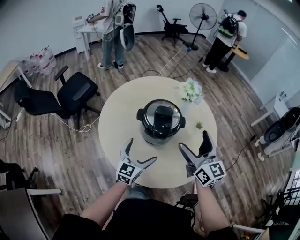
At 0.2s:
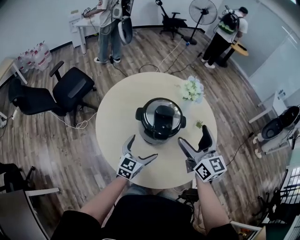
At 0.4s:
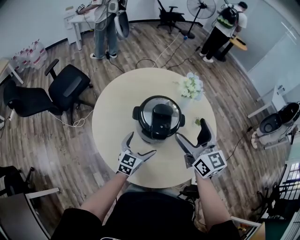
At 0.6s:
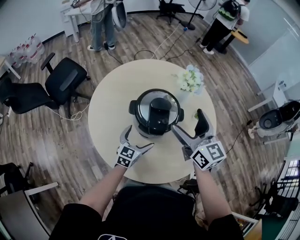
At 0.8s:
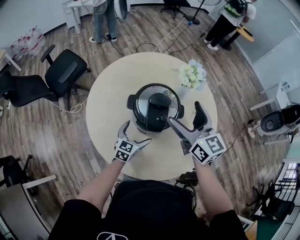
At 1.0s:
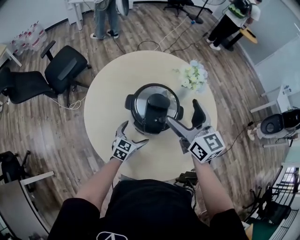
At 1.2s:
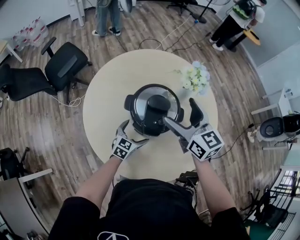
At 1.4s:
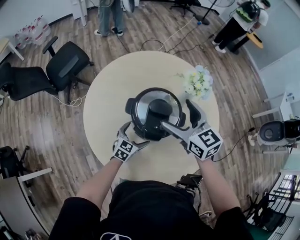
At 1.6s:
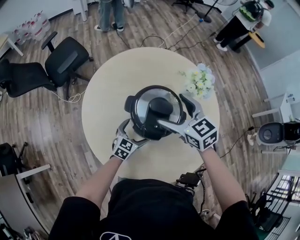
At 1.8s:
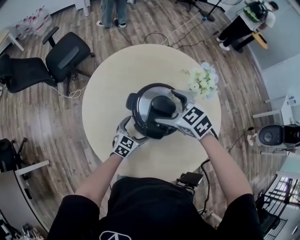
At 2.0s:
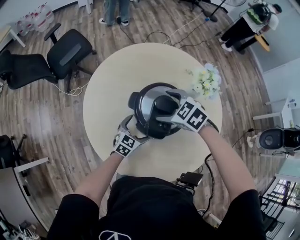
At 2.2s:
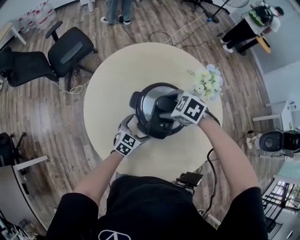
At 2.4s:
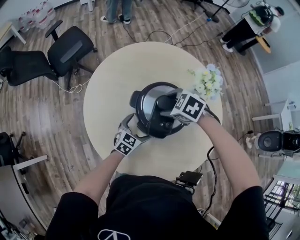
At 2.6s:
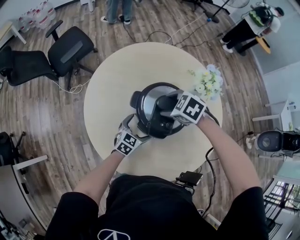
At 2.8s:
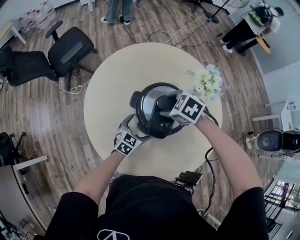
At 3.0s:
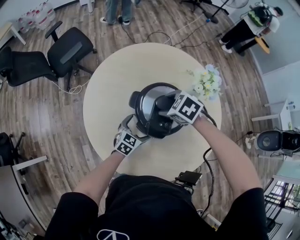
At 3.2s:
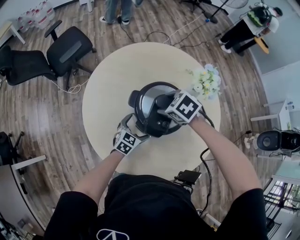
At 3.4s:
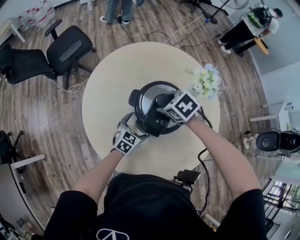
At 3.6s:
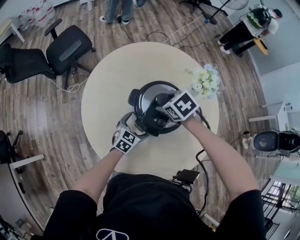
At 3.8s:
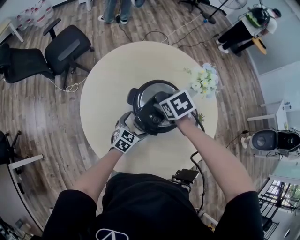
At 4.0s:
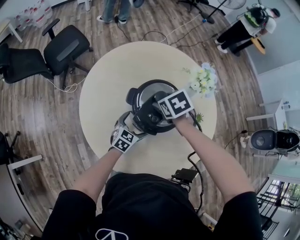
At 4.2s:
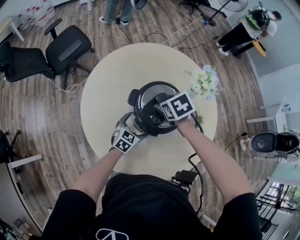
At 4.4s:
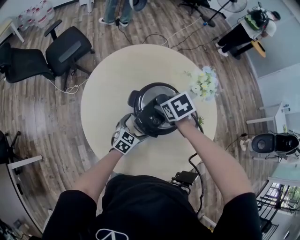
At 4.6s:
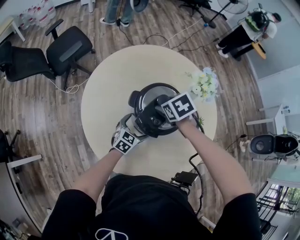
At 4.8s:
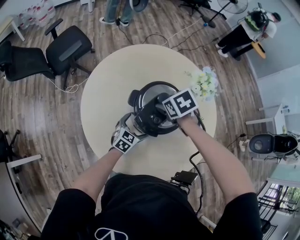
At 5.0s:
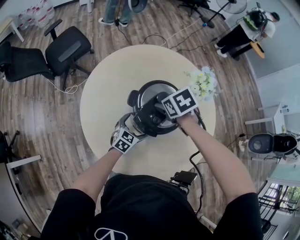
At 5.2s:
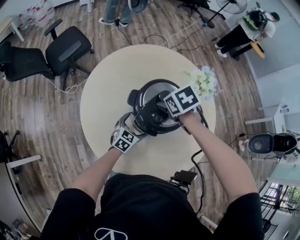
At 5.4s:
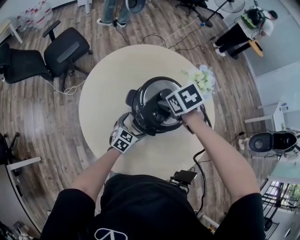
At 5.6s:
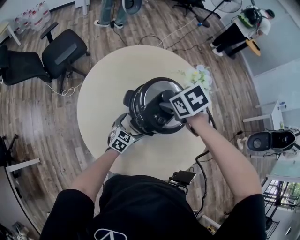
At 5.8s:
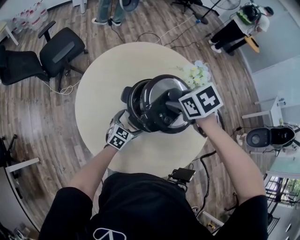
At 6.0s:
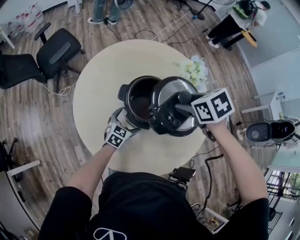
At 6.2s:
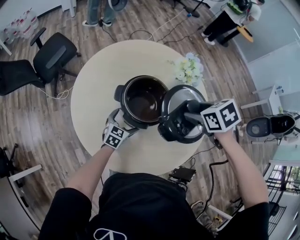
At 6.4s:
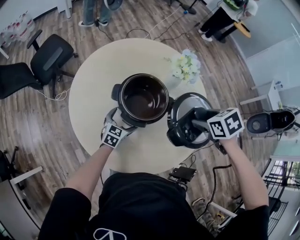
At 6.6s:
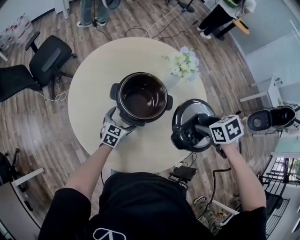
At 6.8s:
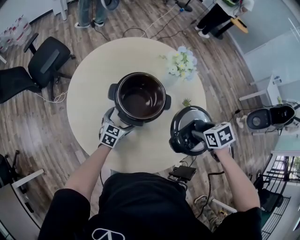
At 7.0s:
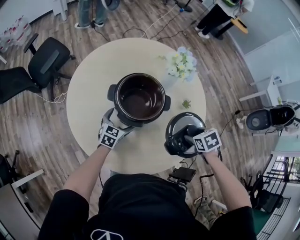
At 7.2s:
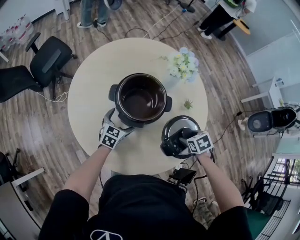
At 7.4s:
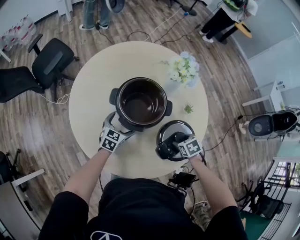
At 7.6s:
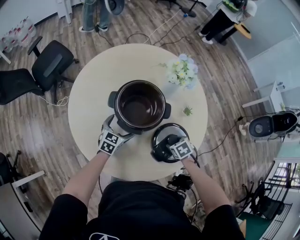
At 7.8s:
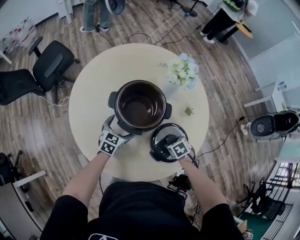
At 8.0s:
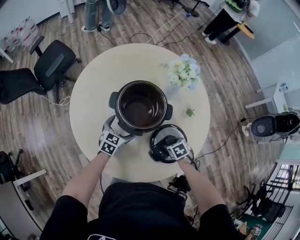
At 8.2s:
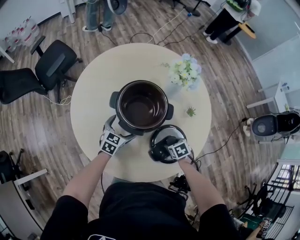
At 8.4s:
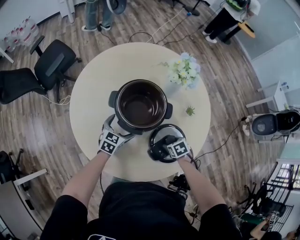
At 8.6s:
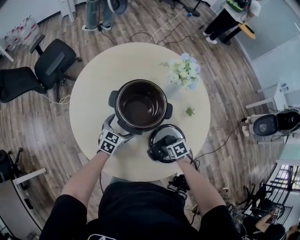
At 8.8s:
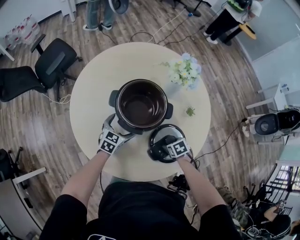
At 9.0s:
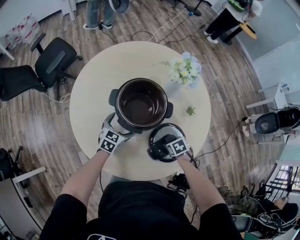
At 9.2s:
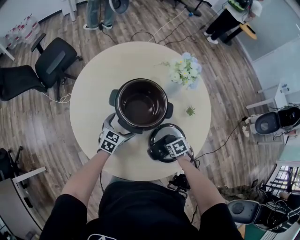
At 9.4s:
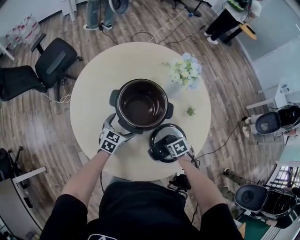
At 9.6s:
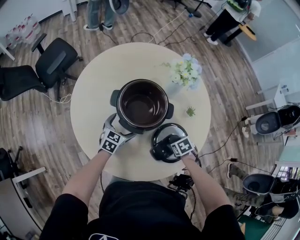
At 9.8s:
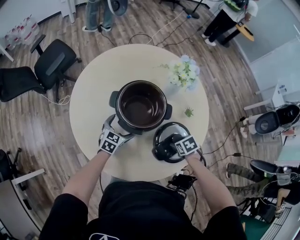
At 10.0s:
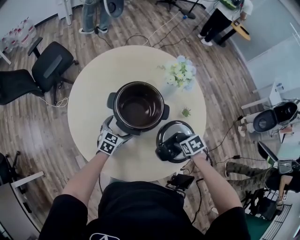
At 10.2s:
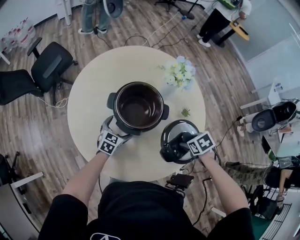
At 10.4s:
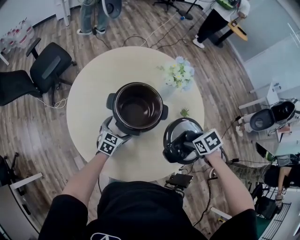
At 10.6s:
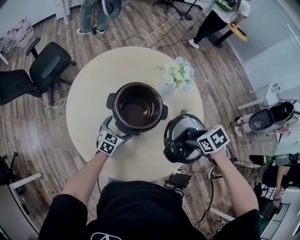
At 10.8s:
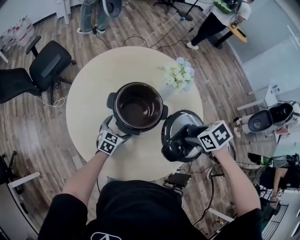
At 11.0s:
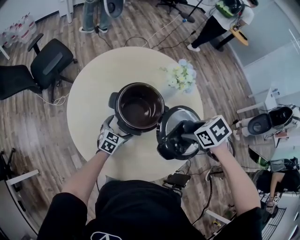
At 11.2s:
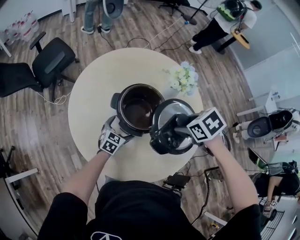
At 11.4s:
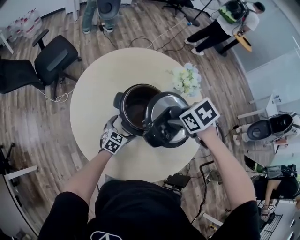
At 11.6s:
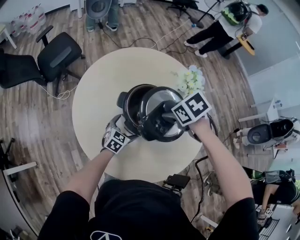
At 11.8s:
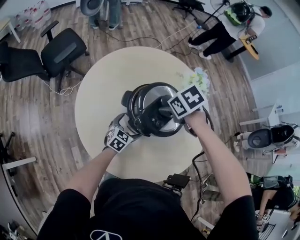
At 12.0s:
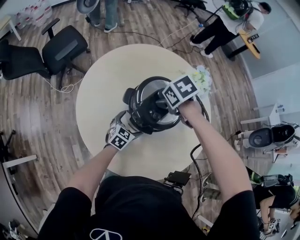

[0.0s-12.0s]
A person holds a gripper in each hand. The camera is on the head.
0.0s to 1.6s: The left gripper heads downward and forward, covering approximately 25 cm, and changes its angle by roughly 20 degrees. Meanwhile the right gripper is displaced forward, downward and to the left by some 25 cm, and tips its fingers downward by roughly 30 degrees.
1.6s to 3.0s: The right gripper travels downward by about 10 cm, tips its fingers downward by roughly 40 degrees, and closes its fingers.
3.0s to 4.4s: The right gripper swivels some 30 degrees.
4.4s to 6.0s: The right gripper moves upward and to the right, about 15 cm.
6.0s to 7.6s: The right gripper goes roughly 25 cm downward.
7.6s to 9.0s: There are only small adjustments of the grippers.
9.0s to 10.4s: The right gripper shifts some 20 cm upward.
10.4s to 12.0s: The right gripper shifts by about 30 cm.

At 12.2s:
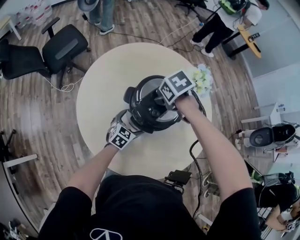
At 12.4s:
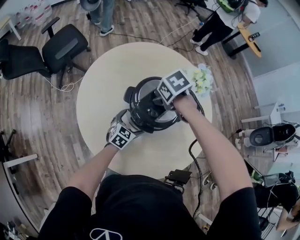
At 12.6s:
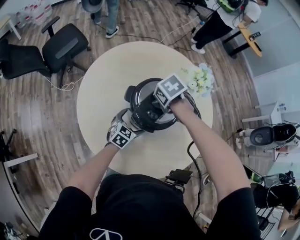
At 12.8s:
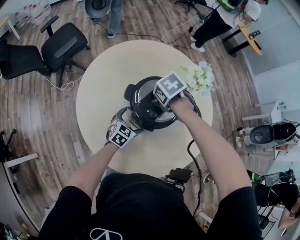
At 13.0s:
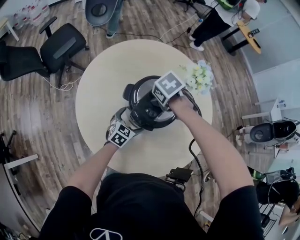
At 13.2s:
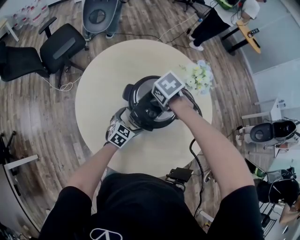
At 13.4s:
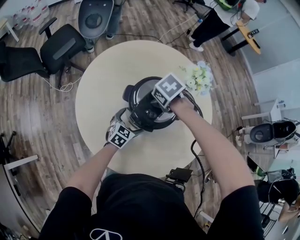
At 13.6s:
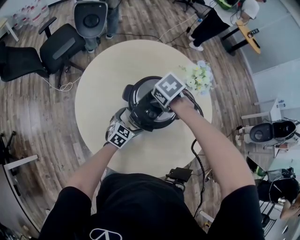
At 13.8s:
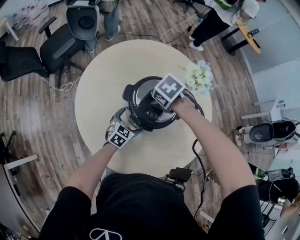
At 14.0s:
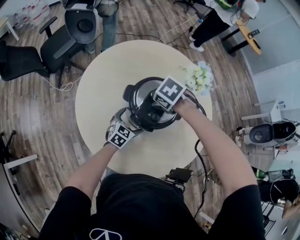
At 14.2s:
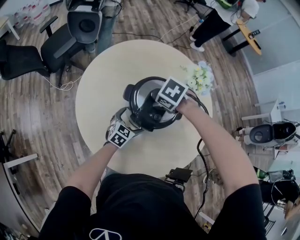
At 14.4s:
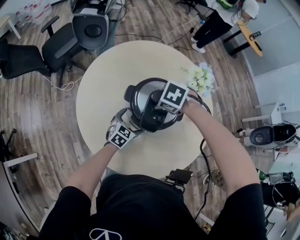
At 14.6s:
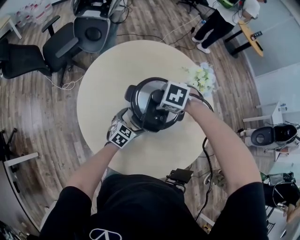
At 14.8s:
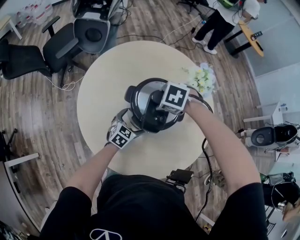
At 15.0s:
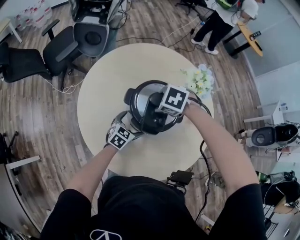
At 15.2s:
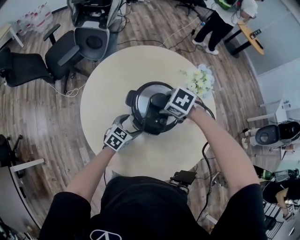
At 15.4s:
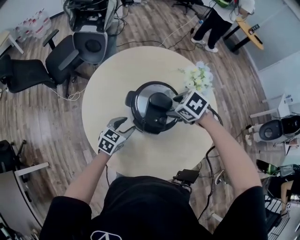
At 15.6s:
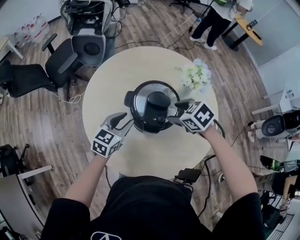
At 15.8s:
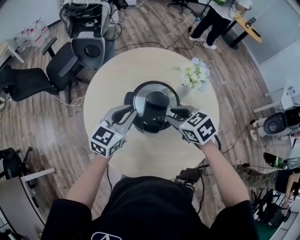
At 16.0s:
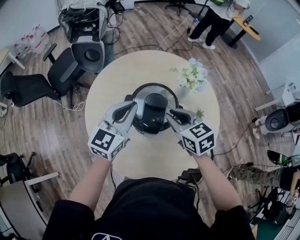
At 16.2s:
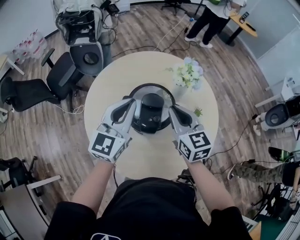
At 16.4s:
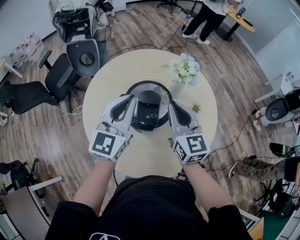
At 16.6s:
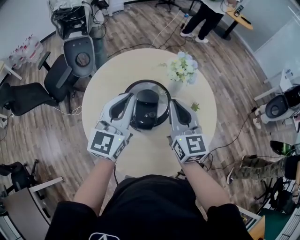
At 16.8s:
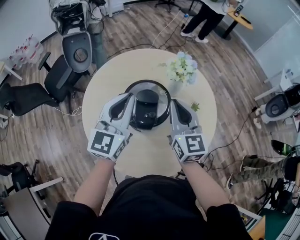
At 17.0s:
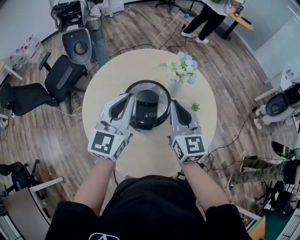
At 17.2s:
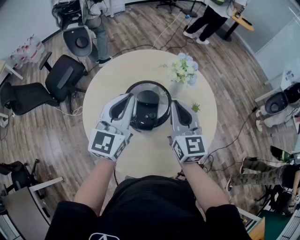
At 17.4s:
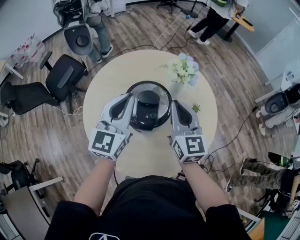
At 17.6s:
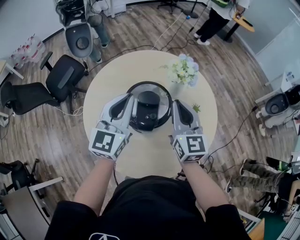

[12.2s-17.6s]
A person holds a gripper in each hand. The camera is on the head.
12.2s to 13.6s: The grippers make only small movements.
13.6s to 15.0s: The right gripper changes its angle by roughly 30 degrees.
15.0s to 16.2s: The left gripper moves upward, some 35 cm, points its fingers about 40 degrees further upward, and closes up. The right gripper travels upward by roughly 15 cm, tilts its fingers roughly 60 degrees upward, and closes its fingers.
16.2s to 17.6s: The grippers move only a little.

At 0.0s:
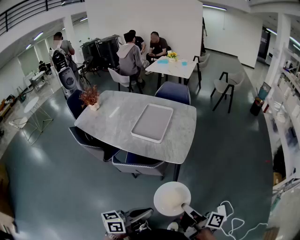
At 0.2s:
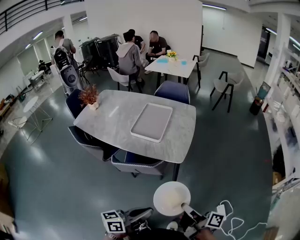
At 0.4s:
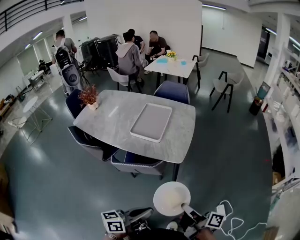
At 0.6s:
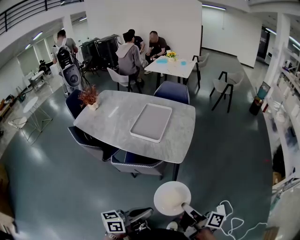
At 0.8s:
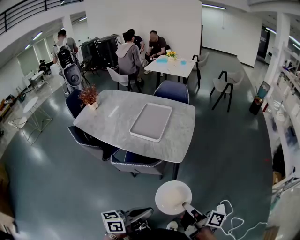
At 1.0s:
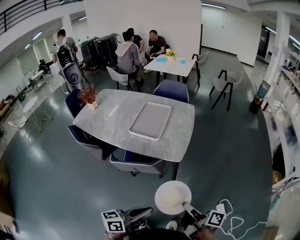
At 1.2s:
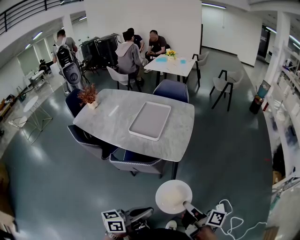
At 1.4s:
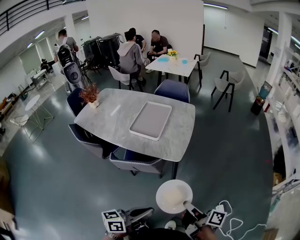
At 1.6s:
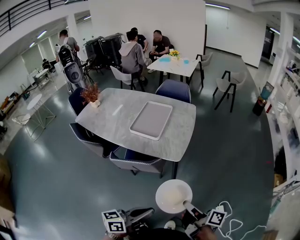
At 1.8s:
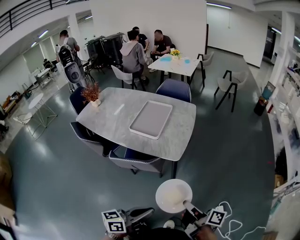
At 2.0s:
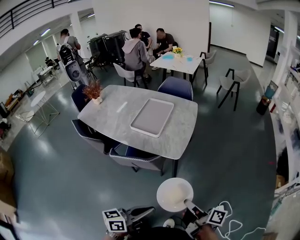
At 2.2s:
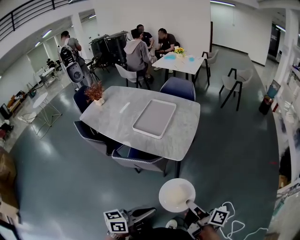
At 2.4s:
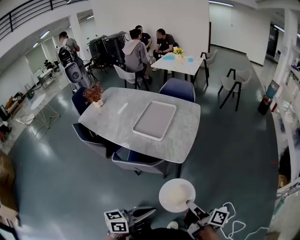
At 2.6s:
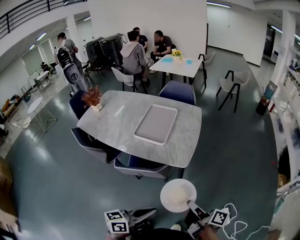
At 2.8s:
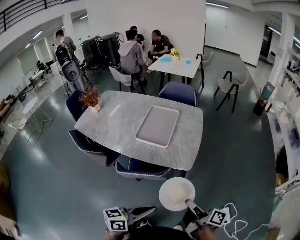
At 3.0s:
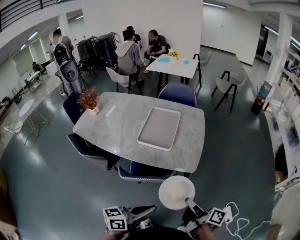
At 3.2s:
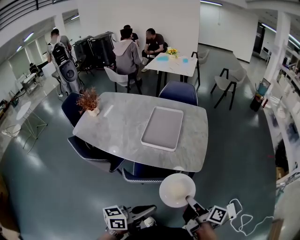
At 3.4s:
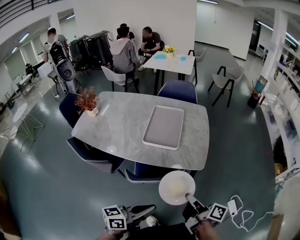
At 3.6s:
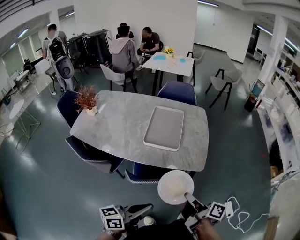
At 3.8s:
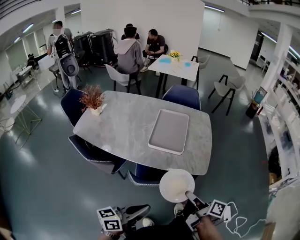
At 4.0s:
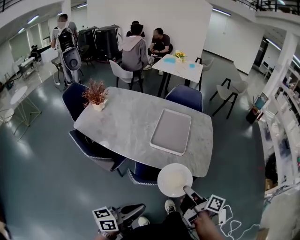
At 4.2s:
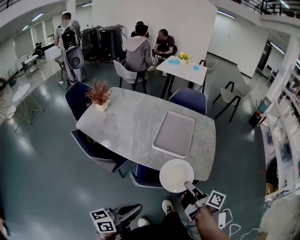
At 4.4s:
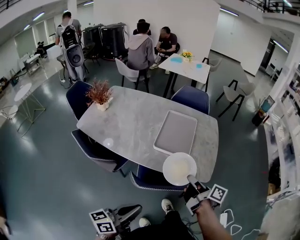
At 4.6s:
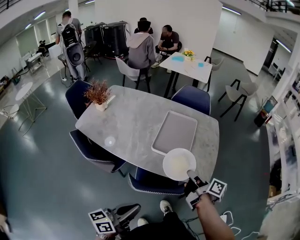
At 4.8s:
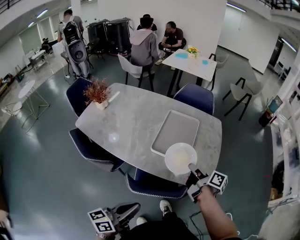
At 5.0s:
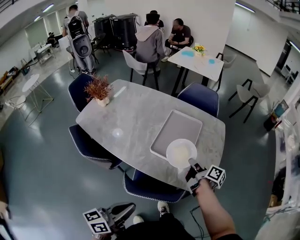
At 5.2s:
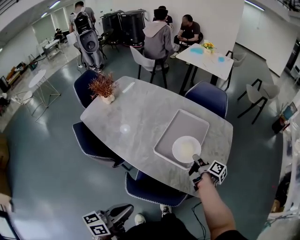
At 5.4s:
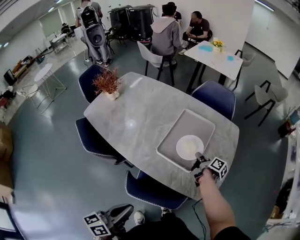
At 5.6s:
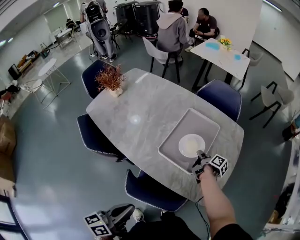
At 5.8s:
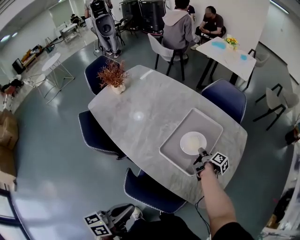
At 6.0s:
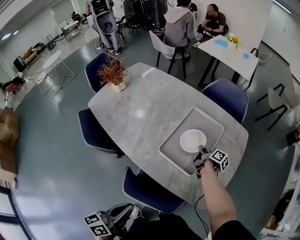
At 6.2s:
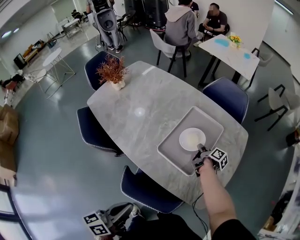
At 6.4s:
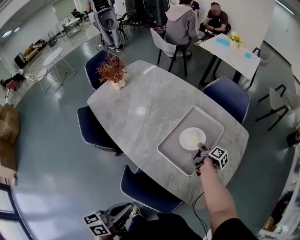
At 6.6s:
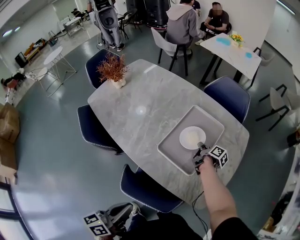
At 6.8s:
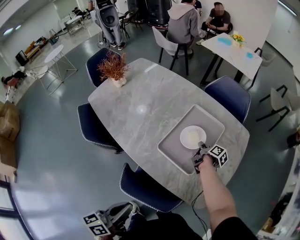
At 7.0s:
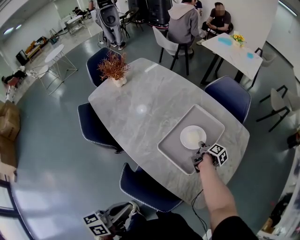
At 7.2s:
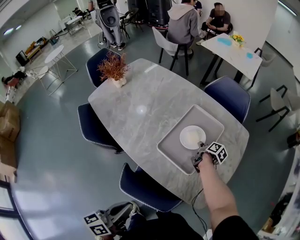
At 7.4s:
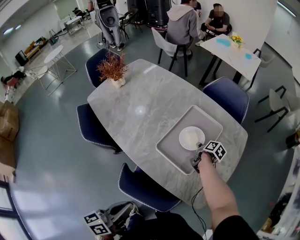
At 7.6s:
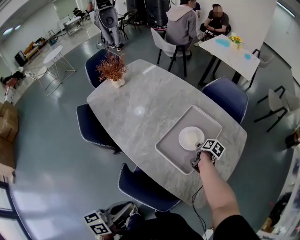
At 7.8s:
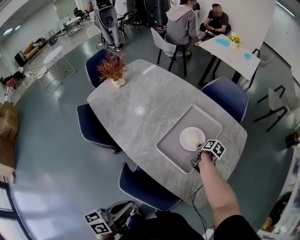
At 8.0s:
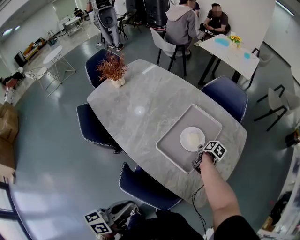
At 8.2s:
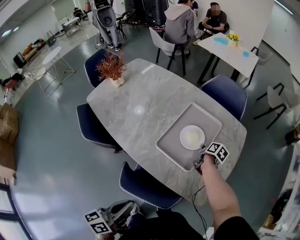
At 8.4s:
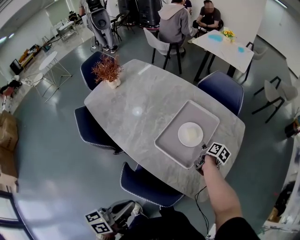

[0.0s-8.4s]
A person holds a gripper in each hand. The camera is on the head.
1.4s to 2.8s: The left gripper shifts by some 10 cm.
2.8s to 4.2s: The left gripper ends up roughly 25 cm from where it was.
4.2s to 5.6s: The left gripper changes place by approximately 15 cm, and changes its angle by about 30 degrees.
